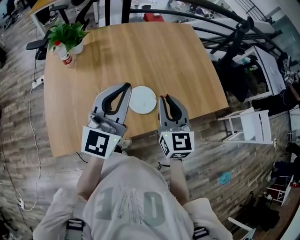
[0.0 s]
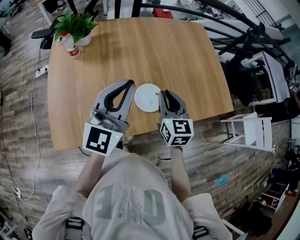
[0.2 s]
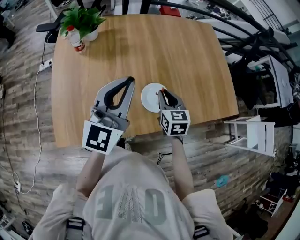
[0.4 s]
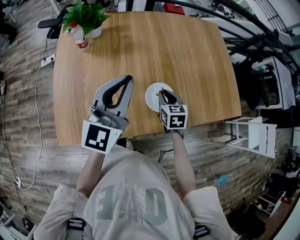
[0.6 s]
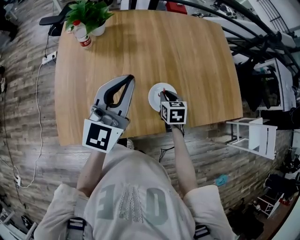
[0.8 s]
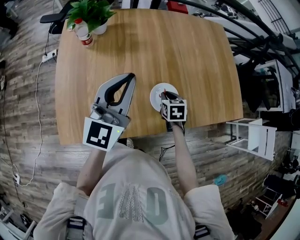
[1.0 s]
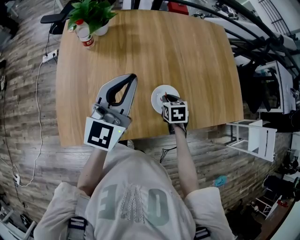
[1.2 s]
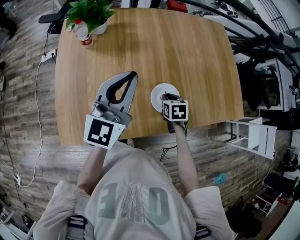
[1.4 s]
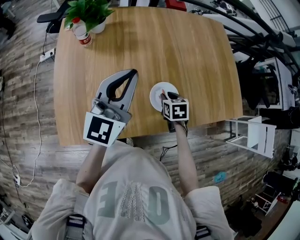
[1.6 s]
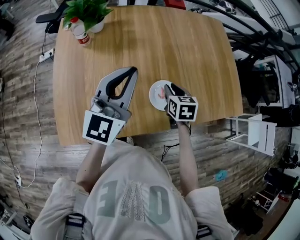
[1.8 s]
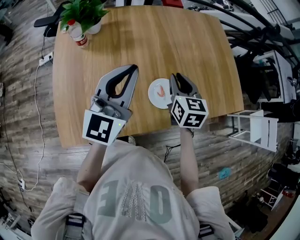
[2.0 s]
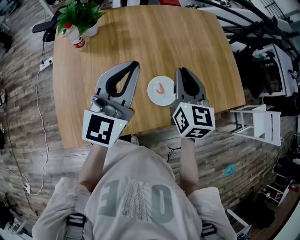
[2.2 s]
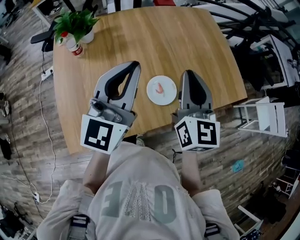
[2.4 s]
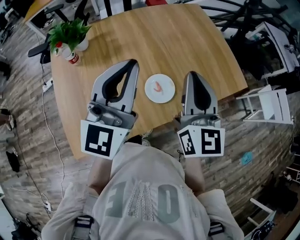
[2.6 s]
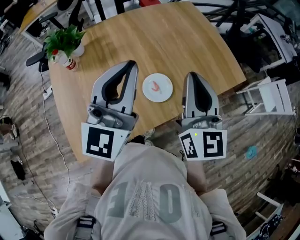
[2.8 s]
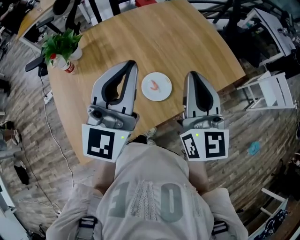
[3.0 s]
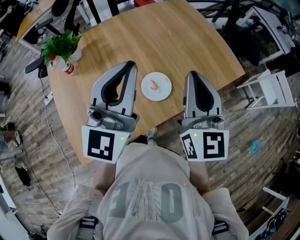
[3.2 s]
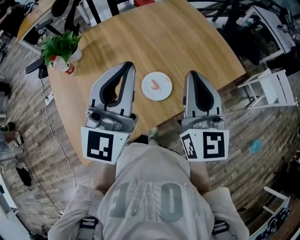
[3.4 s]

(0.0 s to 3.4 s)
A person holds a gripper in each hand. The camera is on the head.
0.0 s - 1.6 s: The left gripper moves to the left and forward, roughly 10 cm; the right gripper goes about 25 cm downward, and tilts its fingers about 50 degrees downward.
1.6 s - 3.4 s: The right gripper moves upward, about 35 cm, and angles its fingers upward, by some 60 degrees; the left gripper goes about 15 cm upward and to the right.

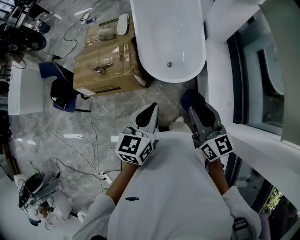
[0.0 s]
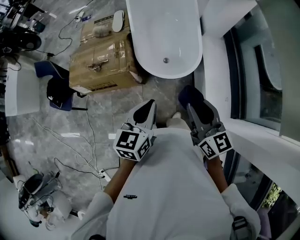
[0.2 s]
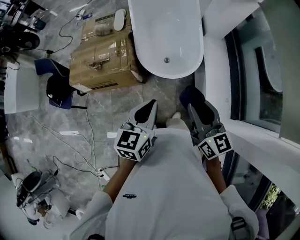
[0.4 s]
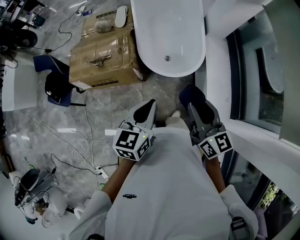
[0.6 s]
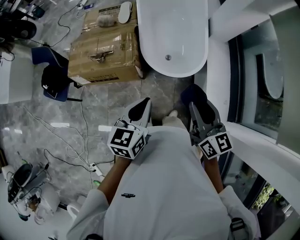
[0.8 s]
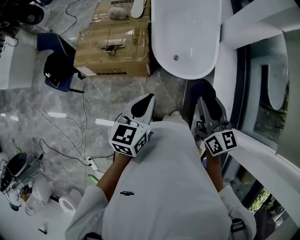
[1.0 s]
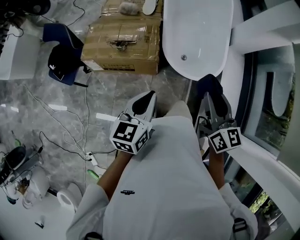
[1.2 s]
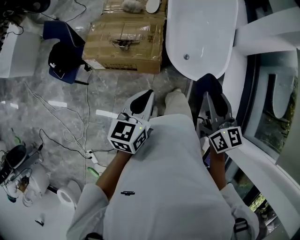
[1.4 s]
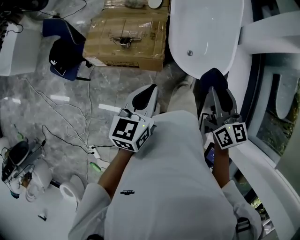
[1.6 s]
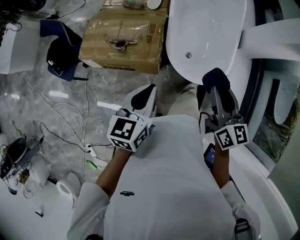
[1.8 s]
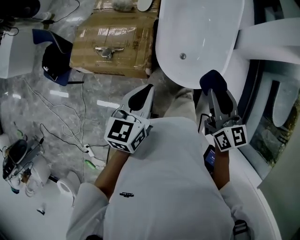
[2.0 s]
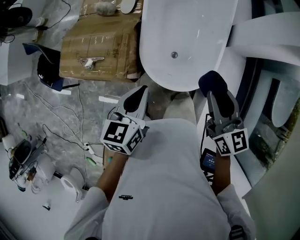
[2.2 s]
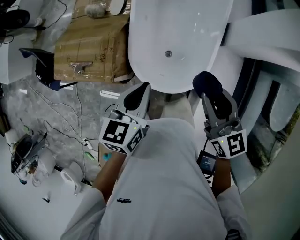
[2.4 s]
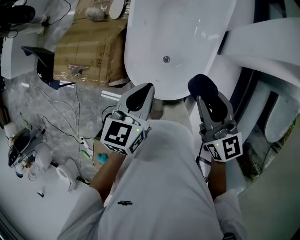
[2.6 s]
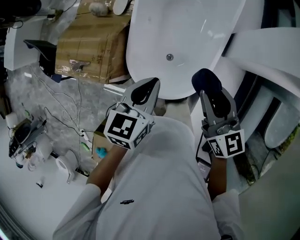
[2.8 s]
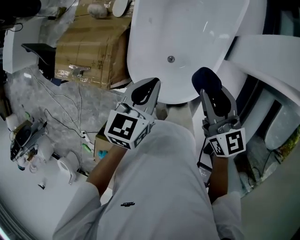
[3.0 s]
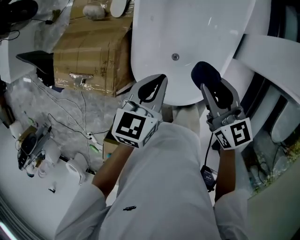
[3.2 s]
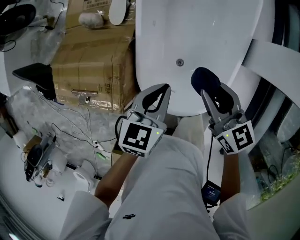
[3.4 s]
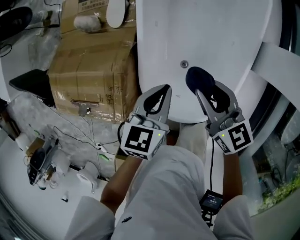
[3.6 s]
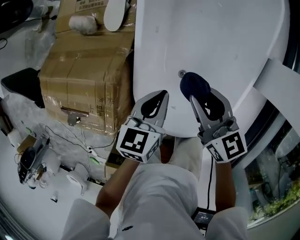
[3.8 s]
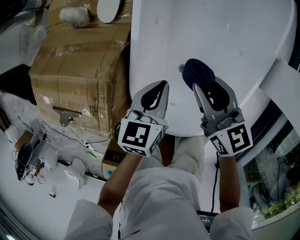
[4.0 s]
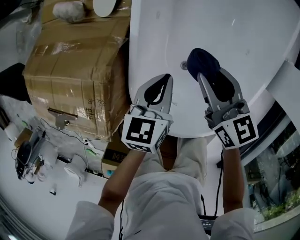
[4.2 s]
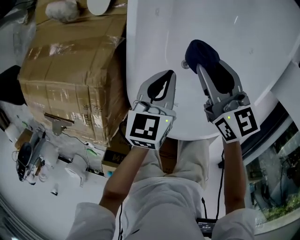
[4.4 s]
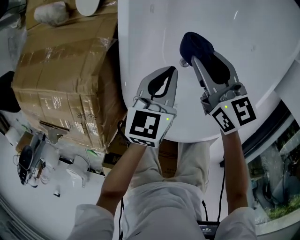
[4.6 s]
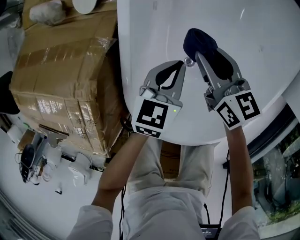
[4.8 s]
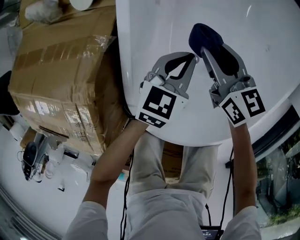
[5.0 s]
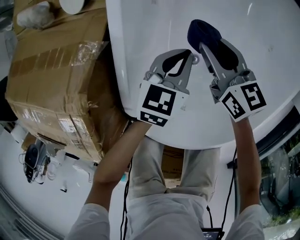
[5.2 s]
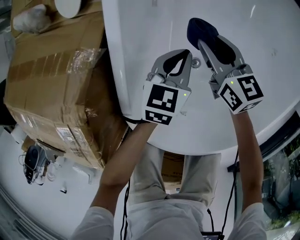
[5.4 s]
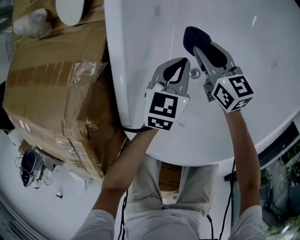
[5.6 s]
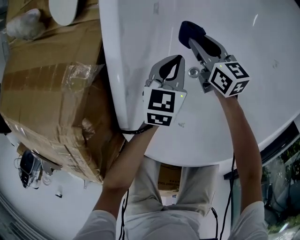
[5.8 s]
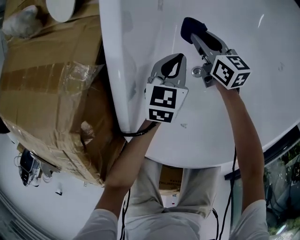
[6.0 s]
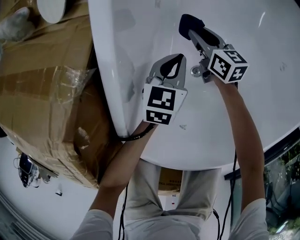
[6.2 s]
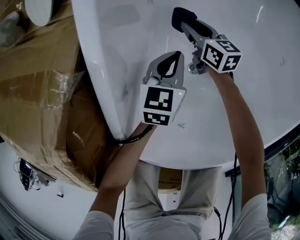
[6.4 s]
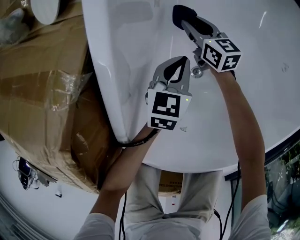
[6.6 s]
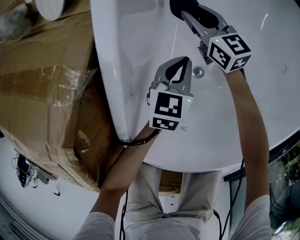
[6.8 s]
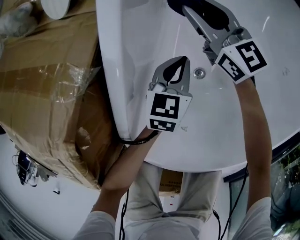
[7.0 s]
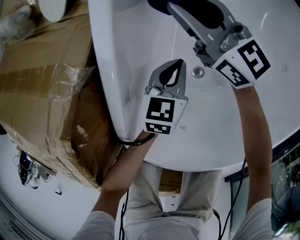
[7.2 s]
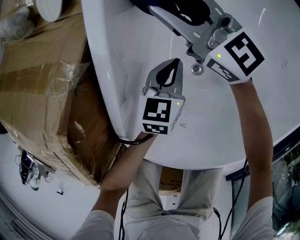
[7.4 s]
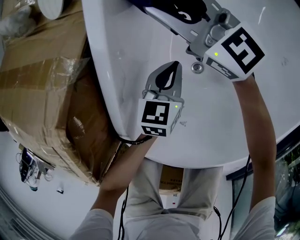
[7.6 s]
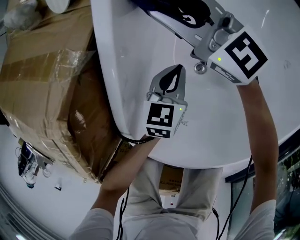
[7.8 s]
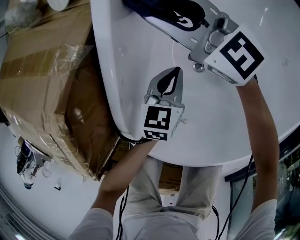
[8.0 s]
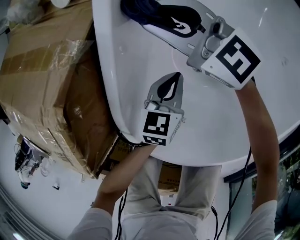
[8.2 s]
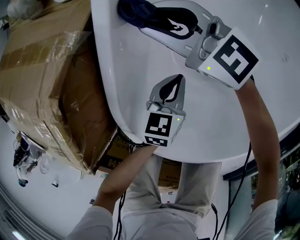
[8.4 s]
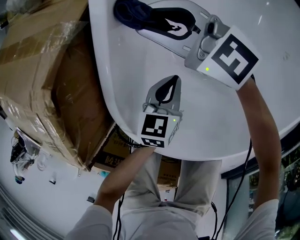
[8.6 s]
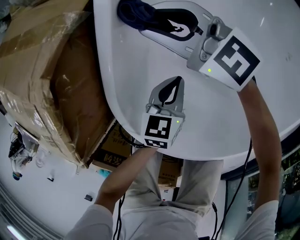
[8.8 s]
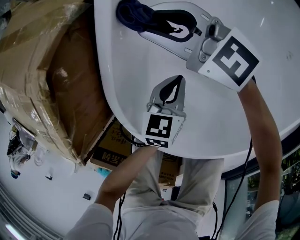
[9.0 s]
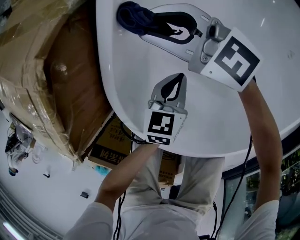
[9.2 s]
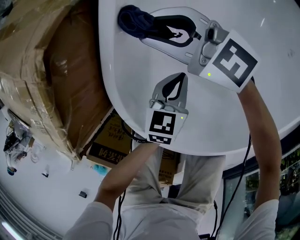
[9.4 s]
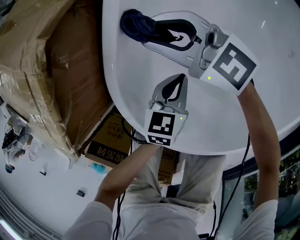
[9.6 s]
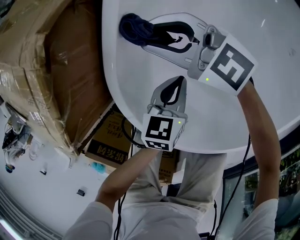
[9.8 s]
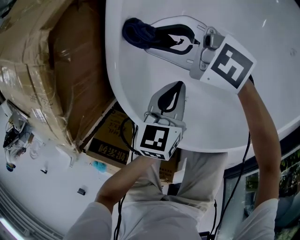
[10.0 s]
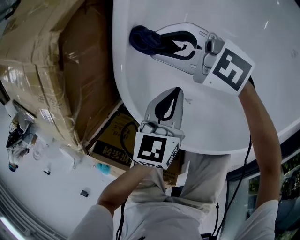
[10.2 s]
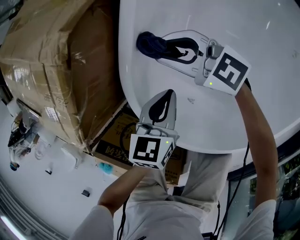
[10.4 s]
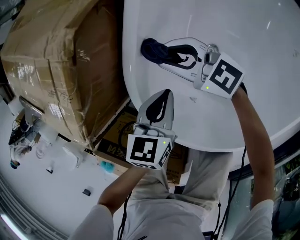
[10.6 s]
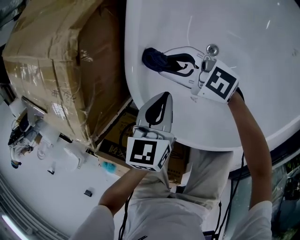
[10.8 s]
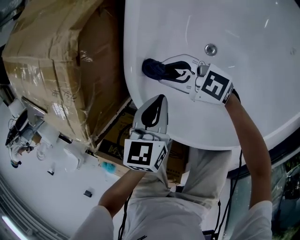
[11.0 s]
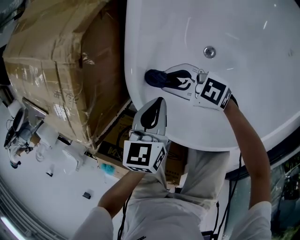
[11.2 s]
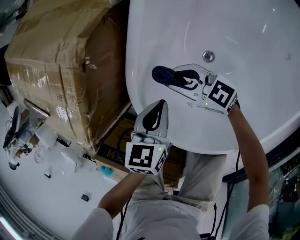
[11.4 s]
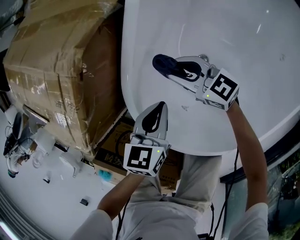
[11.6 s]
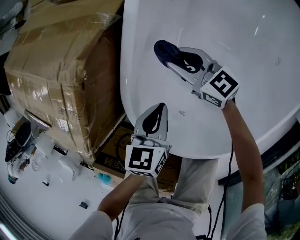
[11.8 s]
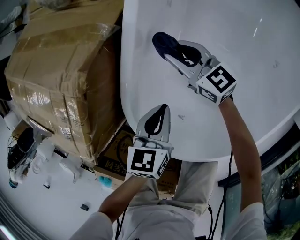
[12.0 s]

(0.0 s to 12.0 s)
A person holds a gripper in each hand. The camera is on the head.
0.0 s - 1.6 s: The grippers both shift to the left and forward by roughly 20 cm.
1.6 s - 3.0 s: Both grippers are carried to the right and forward, about 40 cm.
3.0 s - 4.4 s: The right gripper goes some 40 cm downward, forward and to the left. Meanwhile the left gripper is displaced downward and forward by about 40 cm.
4.4 s - 6.0 s: The grippers both shift downward by approximately 30 cm.
6.0 s - 7.6 s: The right gripper is displaced upward and to the left by roughly 20 cm, and angles its fingers upward, by approximately 30 degrees.
7.6 s - 9.0 s: The left gripper moves backward, approximately 10 cm; the right gripper moves backward and to the left, about 15 cm.
9.0 s - 10.4 s: The left gripper shifts some 10 cm upward and to the left. Meanwhile the right gripper goes roughly 10 cm backward and to the left.
10.4 s - 12.0 s: The right gripper goes about 10 cm to the right and forward, and changes its angle by some 30 degrees, while the left gripper ends up approximately 5 cm from where it was.

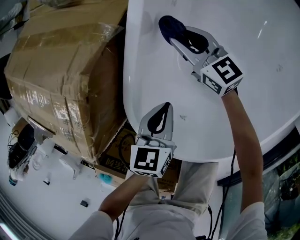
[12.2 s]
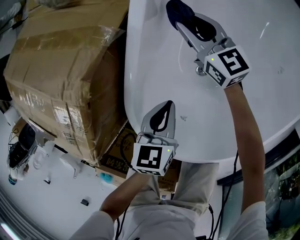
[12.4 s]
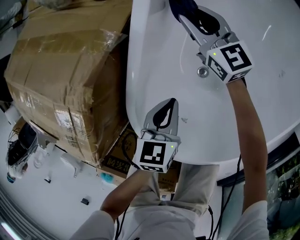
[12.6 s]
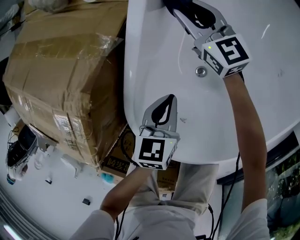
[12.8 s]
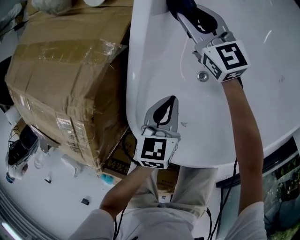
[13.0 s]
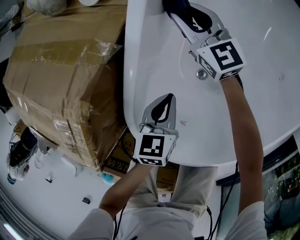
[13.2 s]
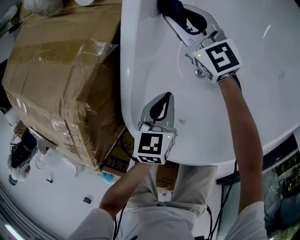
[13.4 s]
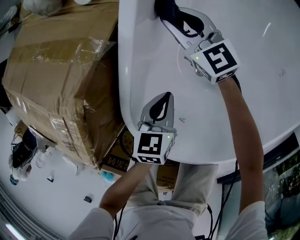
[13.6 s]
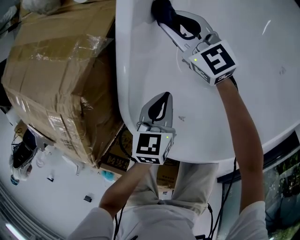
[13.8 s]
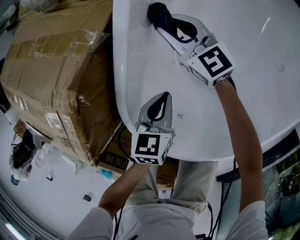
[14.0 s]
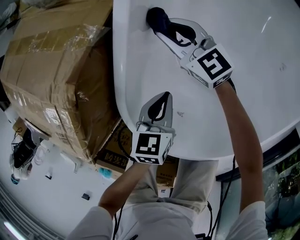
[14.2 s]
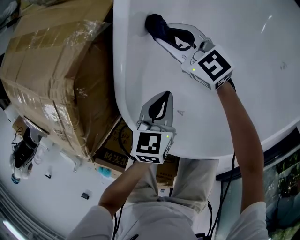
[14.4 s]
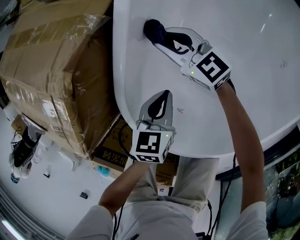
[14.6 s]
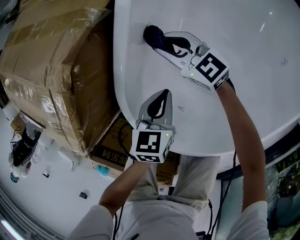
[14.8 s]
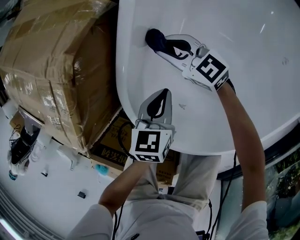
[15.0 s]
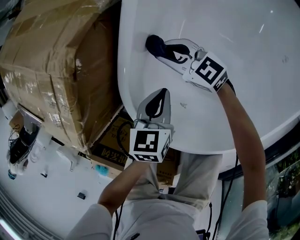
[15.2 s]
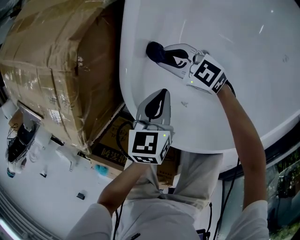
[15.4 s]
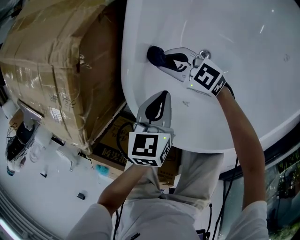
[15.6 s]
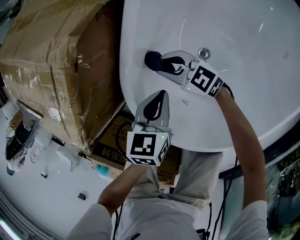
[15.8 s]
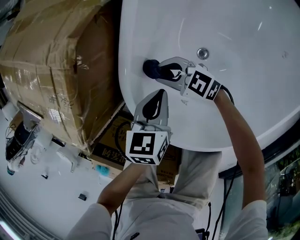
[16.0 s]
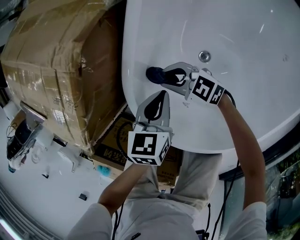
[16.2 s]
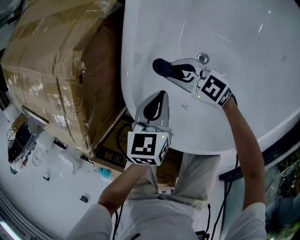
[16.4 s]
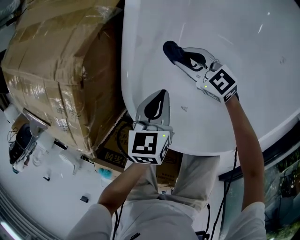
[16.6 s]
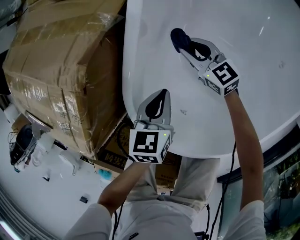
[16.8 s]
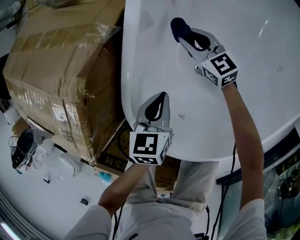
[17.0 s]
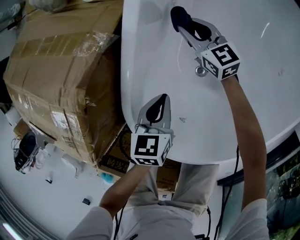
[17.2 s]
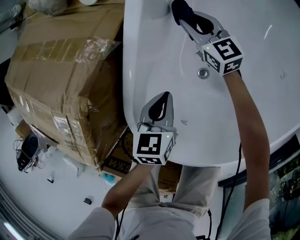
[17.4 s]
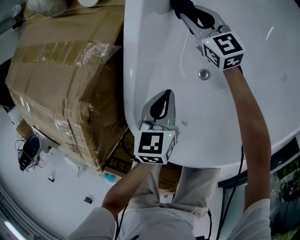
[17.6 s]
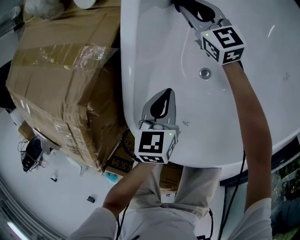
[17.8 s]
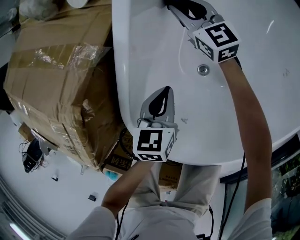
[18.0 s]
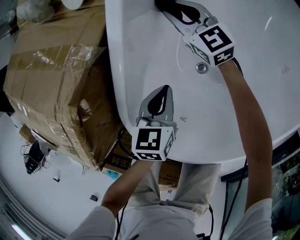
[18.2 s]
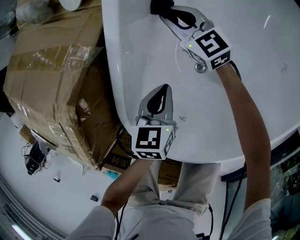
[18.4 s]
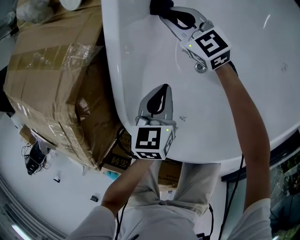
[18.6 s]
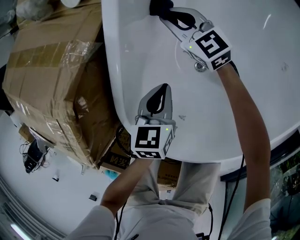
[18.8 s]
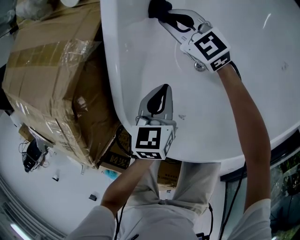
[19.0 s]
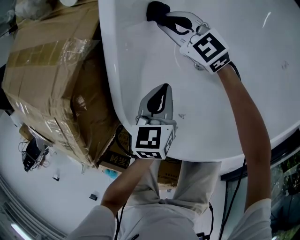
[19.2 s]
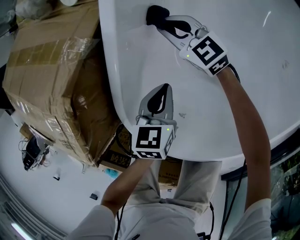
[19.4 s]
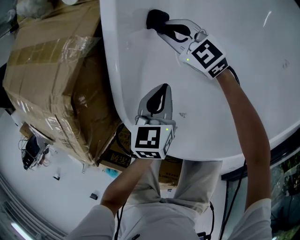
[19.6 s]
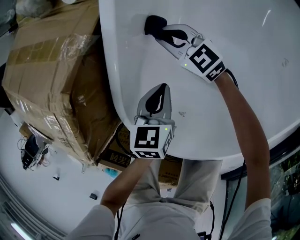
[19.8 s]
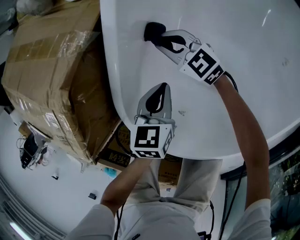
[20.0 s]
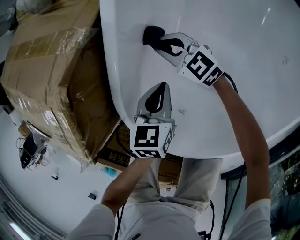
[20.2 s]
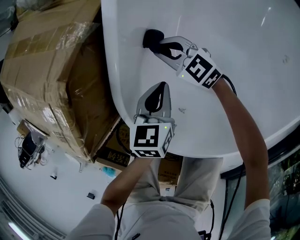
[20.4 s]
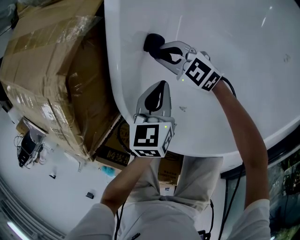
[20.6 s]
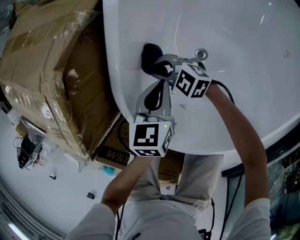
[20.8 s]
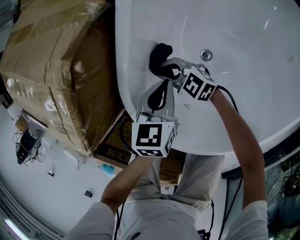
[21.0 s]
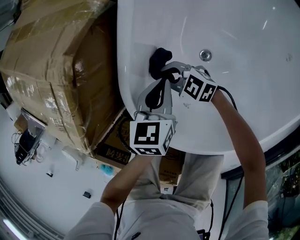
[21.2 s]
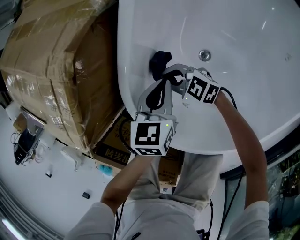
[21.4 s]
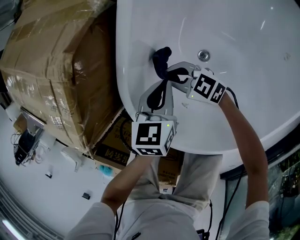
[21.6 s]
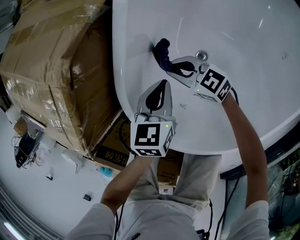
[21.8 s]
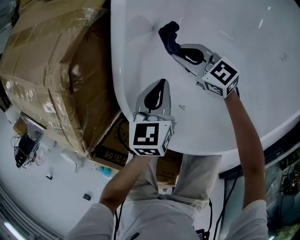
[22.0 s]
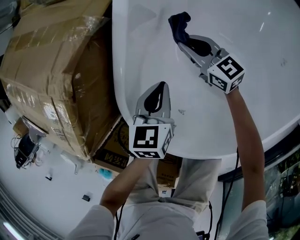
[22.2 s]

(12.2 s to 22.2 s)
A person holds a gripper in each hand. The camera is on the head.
12.2 s - 13.6 s: The left gripper goes approximately 5 cm downward. The right gripper travels forward by some 5 cm.
13.6 s - 15.0 s: The left gripper is displaced backward by some 5 cm, while the right gripper moves backward and to the left, some 20 cm, and turns by approximately 20 degrees.
15.0 s - 16.4 s: The right gripper travels backward by some 10 cm.
16.4 s - 18.0 s: The right gripper heads forward and to the right, covering approximately 30 cm, and turns by roughly 40 degrees, while the left gripper goes roughly 10 cm forward.
18.0 s - 19.4 s: The right gripper heads backward, covering some 10 cm.
19.4 s - 20.8 s: The right gripper heads backward and to the left, covering some 20 cm, and changes its angle by about 30 degrees.
20.8 s - 22.2 s: The right gripper heads to the right, covering roughly 15 cm, and turns by roughly 40 degrees.
